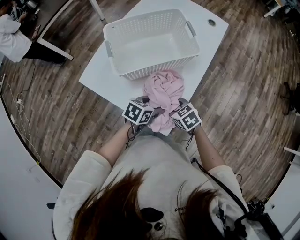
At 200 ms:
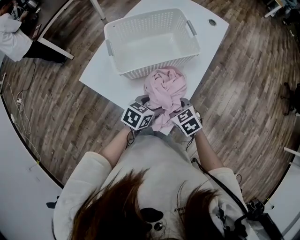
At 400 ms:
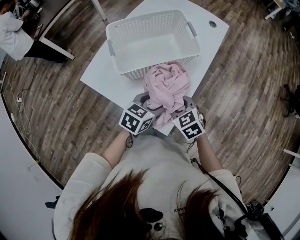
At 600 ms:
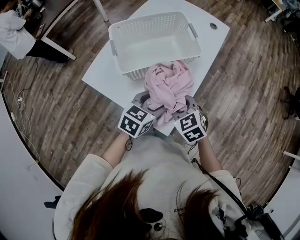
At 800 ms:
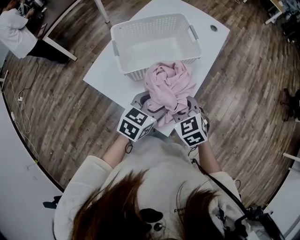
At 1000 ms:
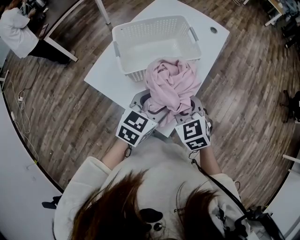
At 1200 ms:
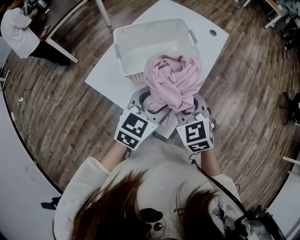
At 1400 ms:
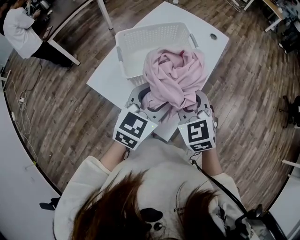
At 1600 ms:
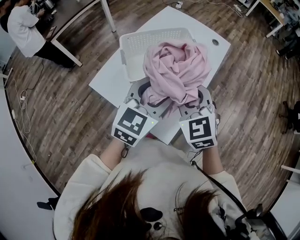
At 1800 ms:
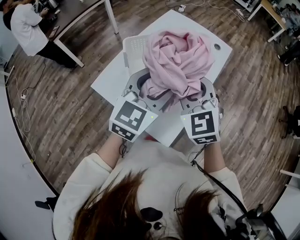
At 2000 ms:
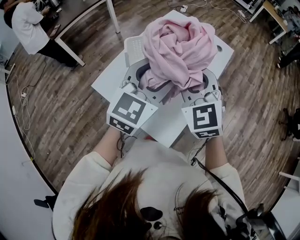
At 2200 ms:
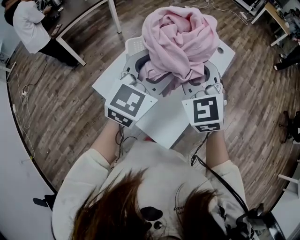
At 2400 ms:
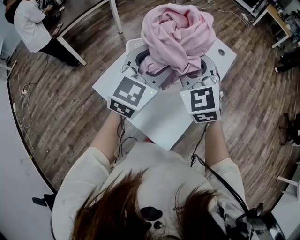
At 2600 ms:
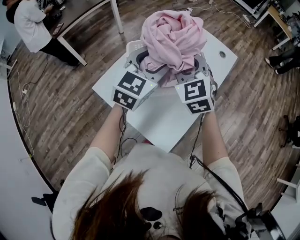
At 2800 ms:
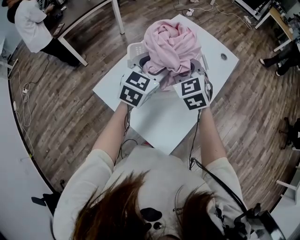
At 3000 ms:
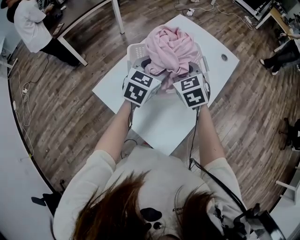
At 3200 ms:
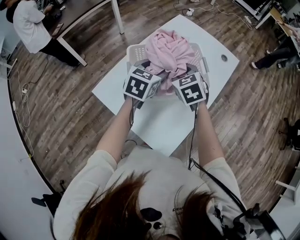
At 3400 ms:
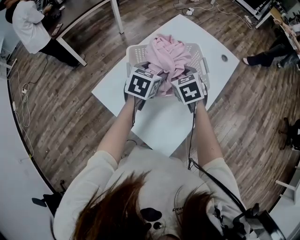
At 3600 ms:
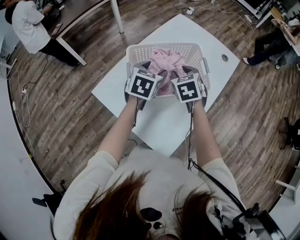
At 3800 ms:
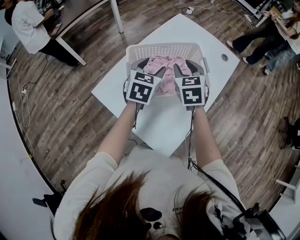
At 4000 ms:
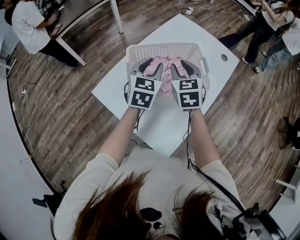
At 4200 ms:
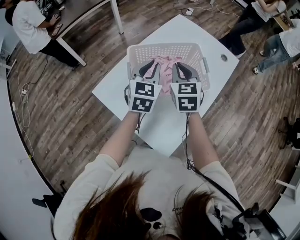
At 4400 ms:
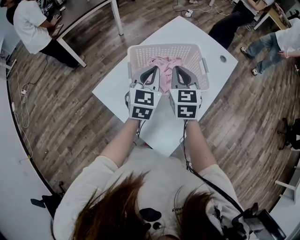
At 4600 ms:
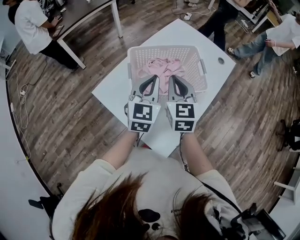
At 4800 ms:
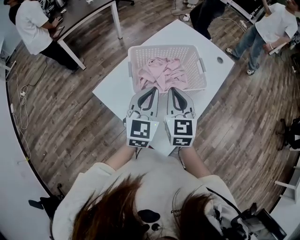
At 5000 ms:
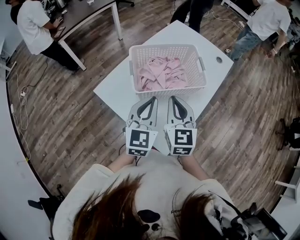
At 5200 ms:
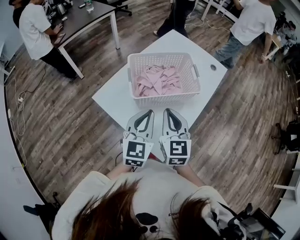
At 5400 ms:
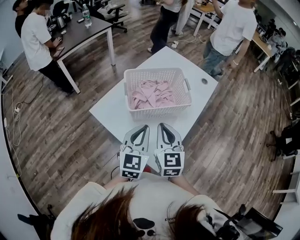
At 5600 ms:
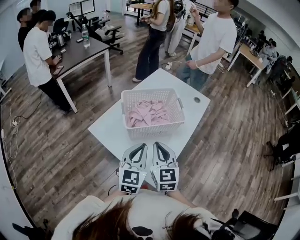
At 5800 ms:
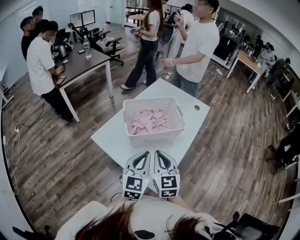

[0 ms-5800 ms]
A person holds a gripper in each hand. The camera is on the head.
0 ms to 1400 ms: The grippers both shift upward by some 25 cm. The right gripper turns by about 40 degrees. Meanwhile the left gripper swivels roughly 40 degrees.
1400 ms to 2800 ms: The right gripper shifts approximately 20 cm forward, while the left gripper shifts some 20 cm forward and to the left.
2800 ms to 4400 ms: The left gripper travels downward and back again, some 10 cm each way, and closes. Meanwhile the right gripper goes downward and returns, some 10 cm each way, changes its angle by some 20 degrees, and closes.
4400 ms to 5800 ms: The two grippers go about 20 cm backward.

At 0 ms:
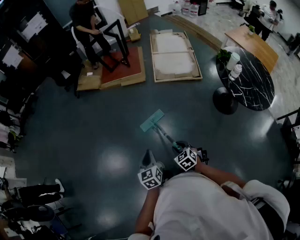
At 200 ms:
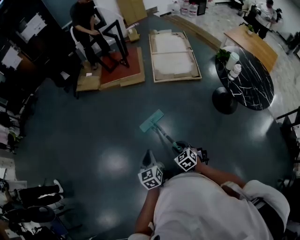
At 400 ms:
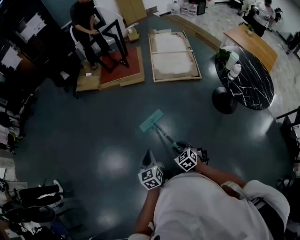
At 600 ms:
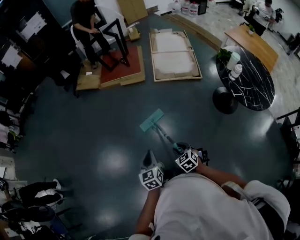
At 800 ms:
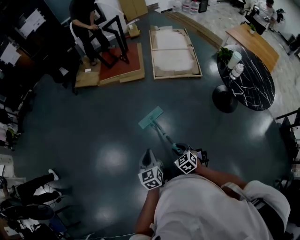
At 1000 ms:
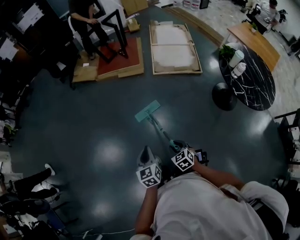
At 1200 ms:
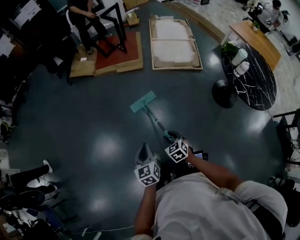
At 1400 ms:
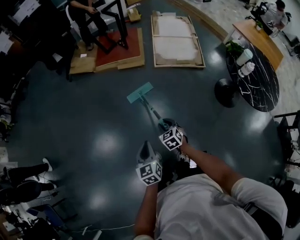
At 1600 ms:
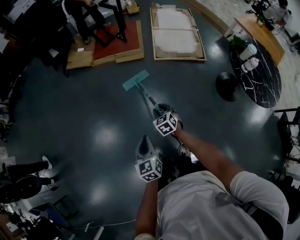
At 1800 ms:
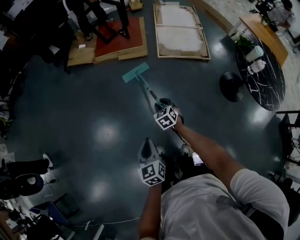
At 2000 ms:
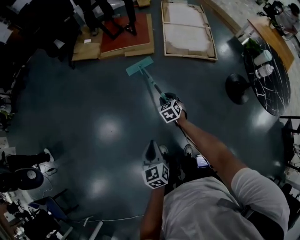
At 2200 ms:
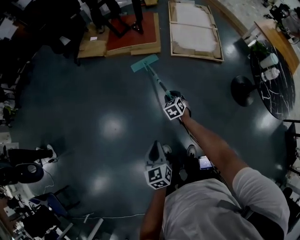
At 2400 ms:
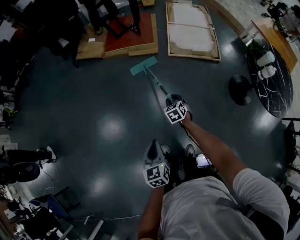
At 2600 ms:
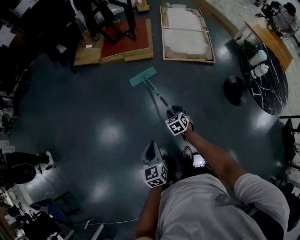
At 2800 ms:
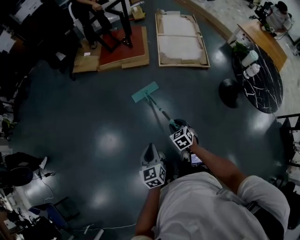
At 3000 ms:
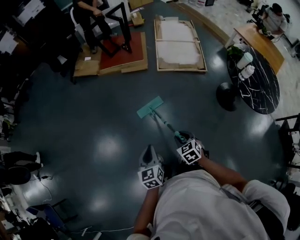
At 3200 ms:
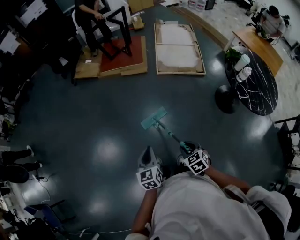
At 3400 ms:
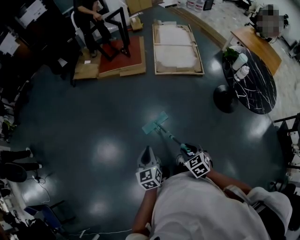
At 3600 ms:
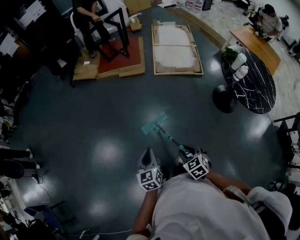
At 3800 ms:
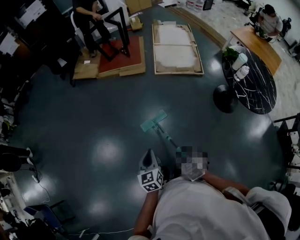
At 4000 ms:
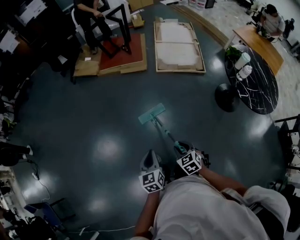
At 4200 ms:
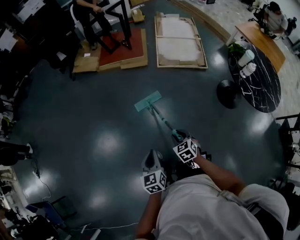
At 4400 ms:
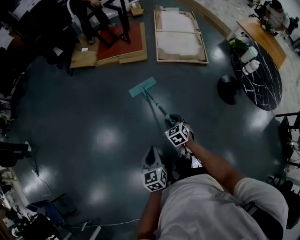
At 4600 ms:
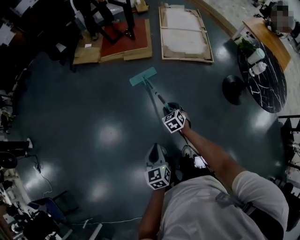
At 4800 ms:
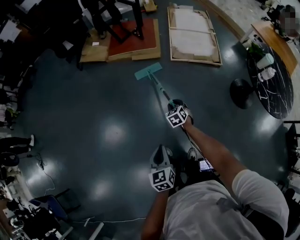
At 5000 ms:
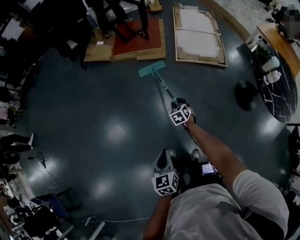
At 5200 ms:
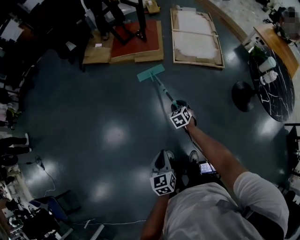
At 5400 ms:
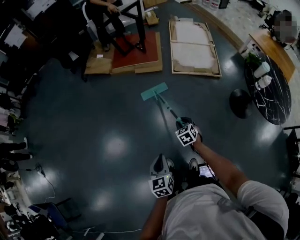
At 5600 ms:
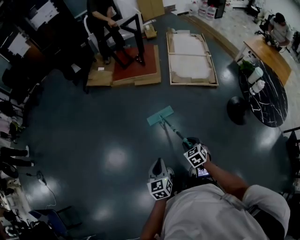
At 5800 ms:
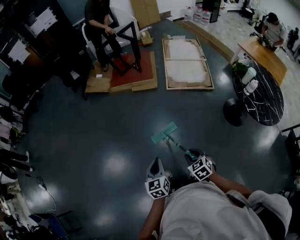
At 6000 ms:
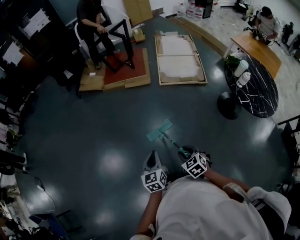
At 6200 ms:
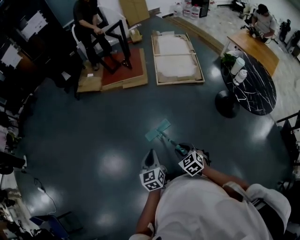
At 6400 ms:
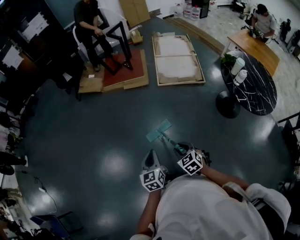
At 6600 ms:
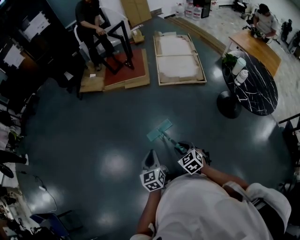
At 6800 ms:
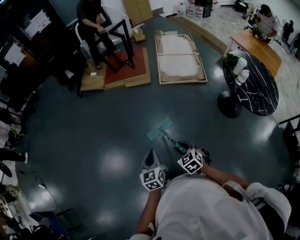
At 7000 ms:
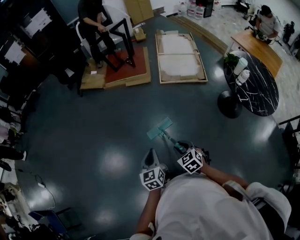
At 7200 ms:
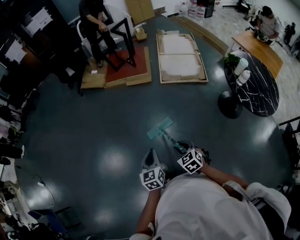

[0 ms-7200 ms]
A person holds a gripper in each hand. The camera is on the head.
0 ms to 1400 ms: The left gripper travels forward by roughly 5 cm; the right gripper moves forward, about 15 cm.
1400 ms to 2800 ms: The right gripper goes forward and returns, about 20 cm each way.
2800 ms to 4400 ms: The right gripper travels backward and back again, roughly 20 cm each way.
4400 ms to 5800 ms: The right gripper is displaced backward and upward by approximately 15 cm; the left gripper moves some 5 cm.
5800 ms to 7200 ms: There are only small adjustments of the grippers.

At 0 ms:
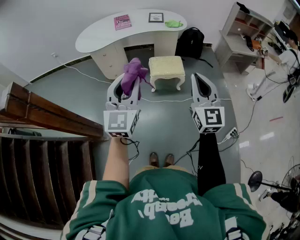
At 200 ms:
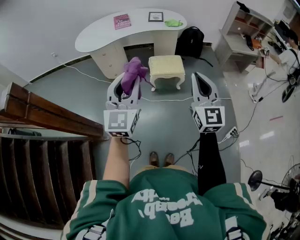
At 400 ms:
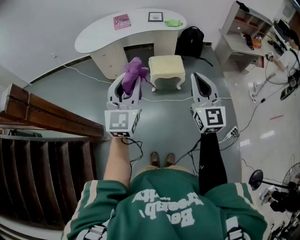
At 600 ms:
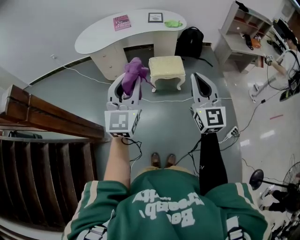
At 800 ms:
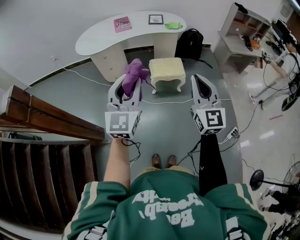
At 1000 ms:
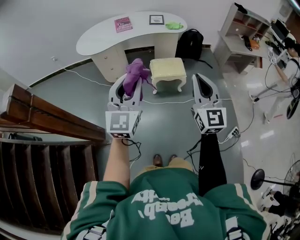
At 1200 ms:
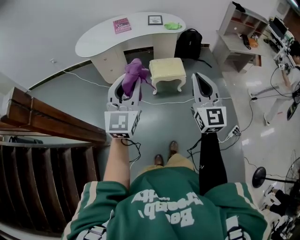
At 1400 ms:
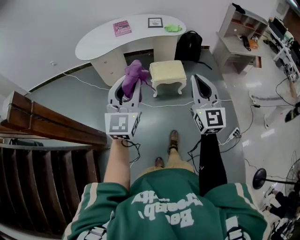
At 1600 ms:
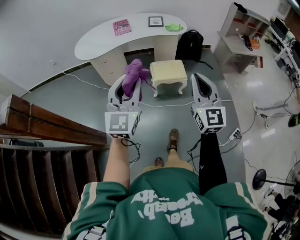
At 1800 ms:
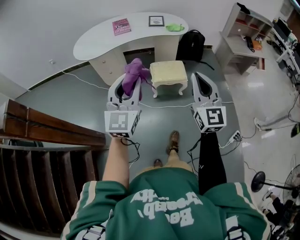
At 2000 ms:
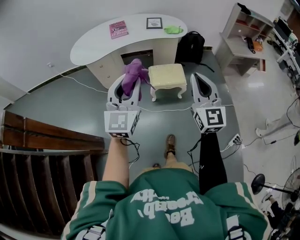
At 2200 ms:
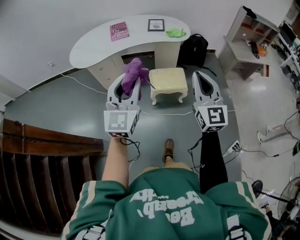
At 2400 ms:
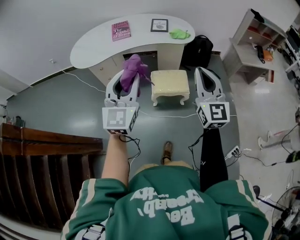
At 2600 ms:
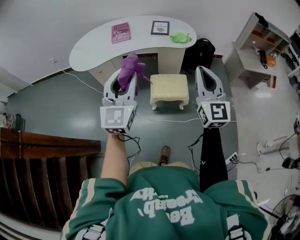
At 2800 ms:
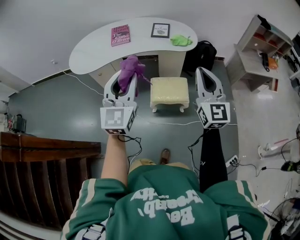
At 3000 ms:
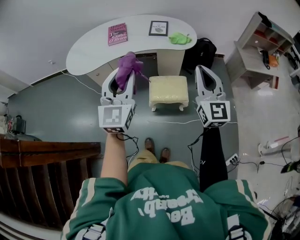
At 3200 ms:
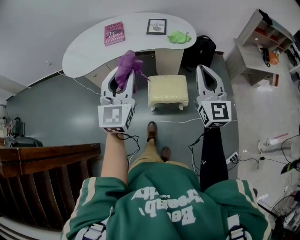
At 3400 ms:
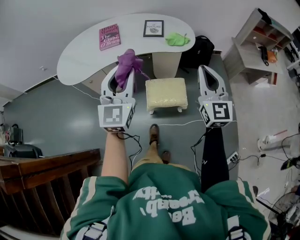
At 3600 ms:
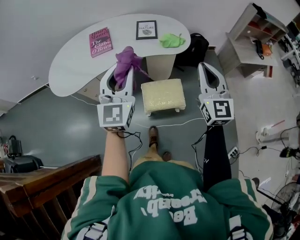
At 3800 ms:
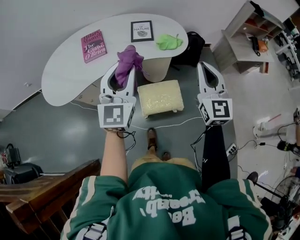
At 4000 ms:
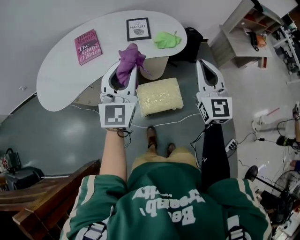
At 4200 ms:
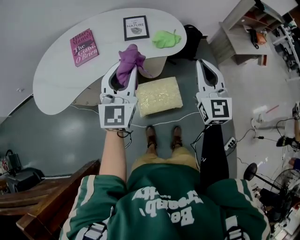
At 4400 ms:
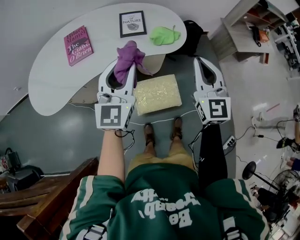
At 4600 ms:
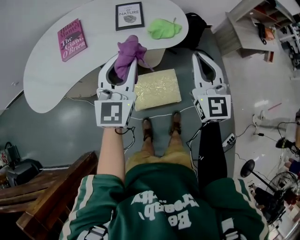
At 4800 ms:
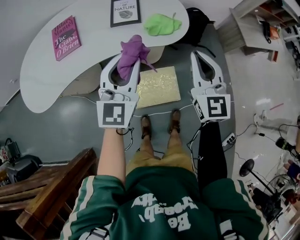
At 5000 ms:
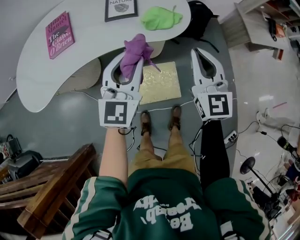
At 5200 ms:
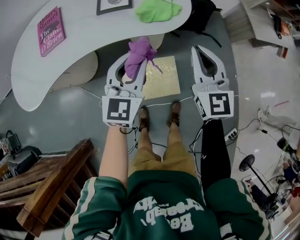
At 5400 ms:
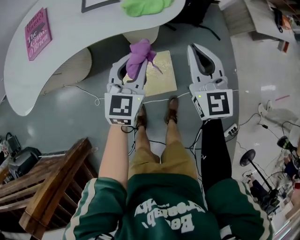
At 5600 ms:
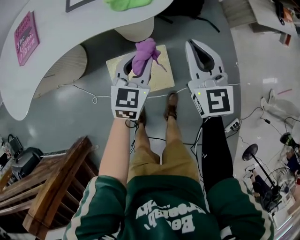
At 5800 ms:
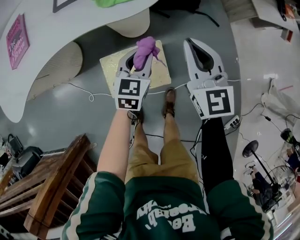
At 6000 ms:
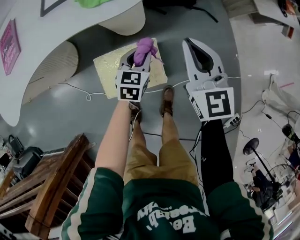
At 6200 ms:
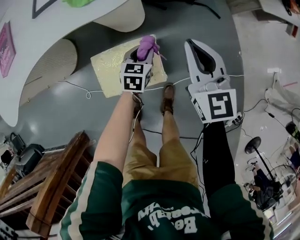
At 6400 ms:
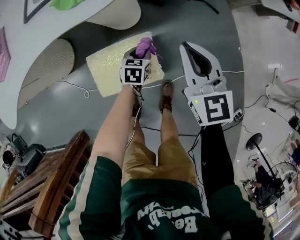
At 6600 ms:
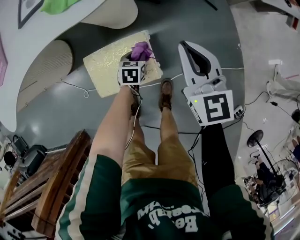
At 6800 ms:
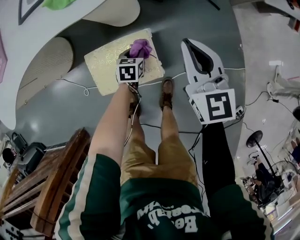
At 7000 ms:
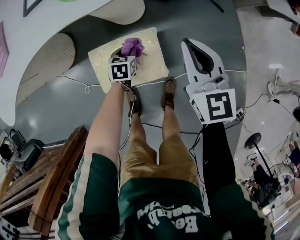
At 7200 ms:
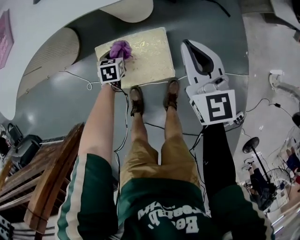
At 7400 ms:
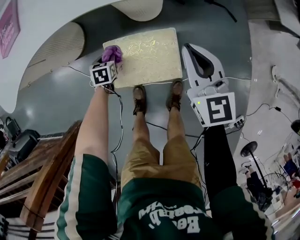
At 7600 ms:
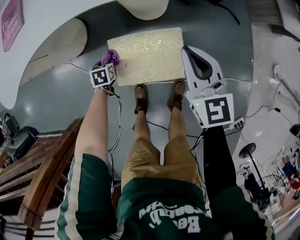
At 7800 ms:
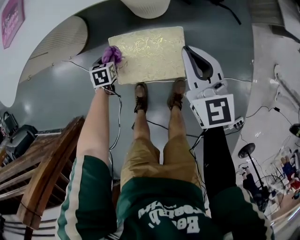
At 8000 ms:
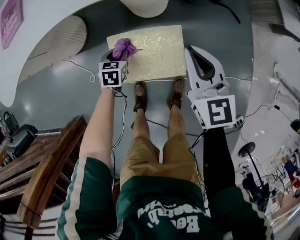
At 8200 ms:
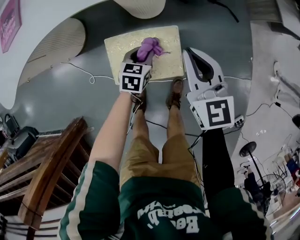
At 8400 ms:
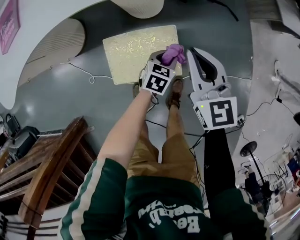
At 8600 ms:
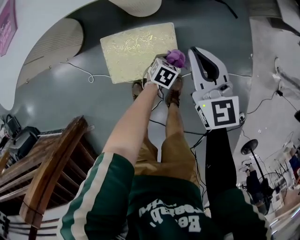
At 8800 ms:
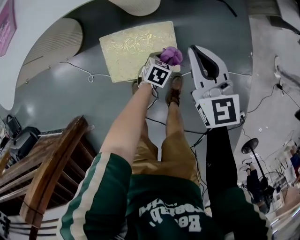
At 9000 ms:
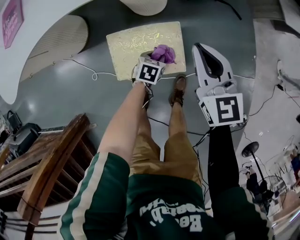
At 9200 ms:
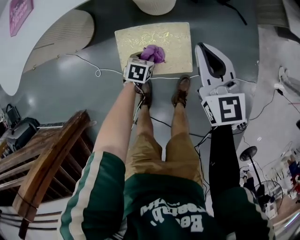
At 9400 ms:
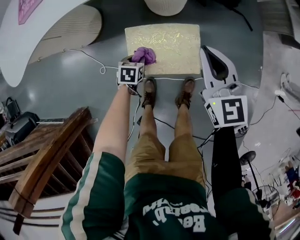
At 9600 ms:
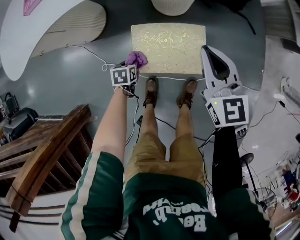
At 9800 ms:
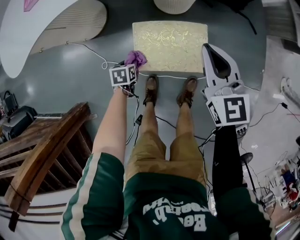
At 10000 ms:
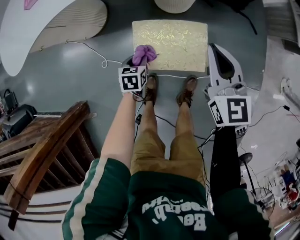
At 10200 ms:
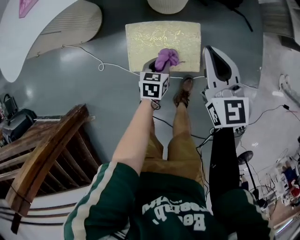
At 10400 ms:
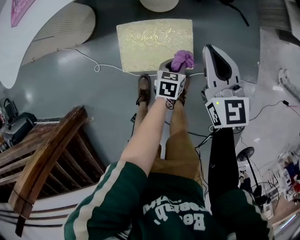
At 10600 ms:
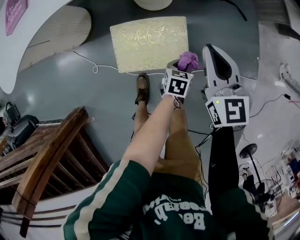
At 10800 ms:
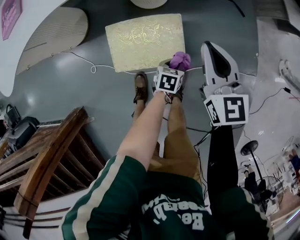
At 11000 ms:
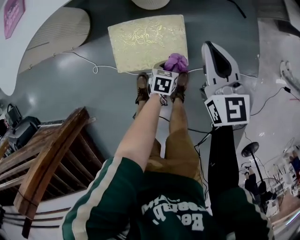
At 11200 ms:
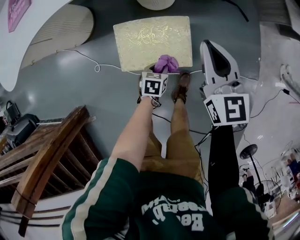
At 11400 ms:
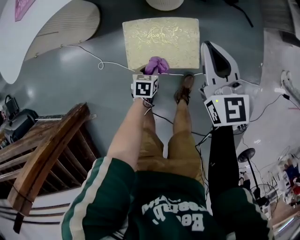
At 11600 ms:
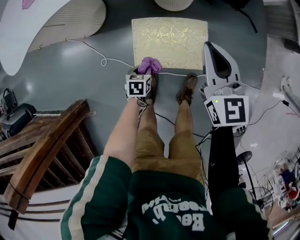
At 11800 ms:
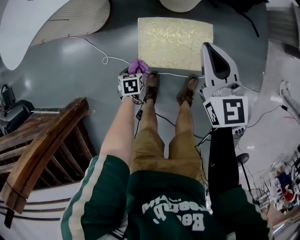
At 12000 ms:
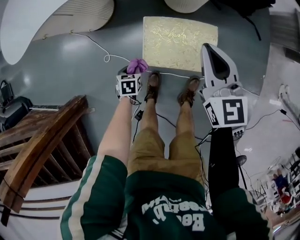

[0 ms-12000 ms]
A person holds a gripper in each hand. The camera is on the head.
0 ms to 1600 ms: The grippers move only a little.
1600 ms to 3000 ms: Both grippers move forward, roughly 30 cm.
3000 ms to 4400 ms: The grippers both shift forward by roughly 25 cm.
4400 ms to 6000 ms: The right gripper heads downward and to the right, covering roughly 30 cm; the left gripper heads downward and to the right, covering roughly 50 cm, and tilts its fingers roughly 40 degrees downward.
6000 ms to 7600 ms: The left gripper moves to the left and downward, approximately 35 cm, and changes its angle by roughly 40 degrees; the right gripper moves to the left and downward, about 10 cm.
7600 ms to 9000 ms: The left gripper travels upward and back again, about 10 cm each way, and turns by roughly 30 degrees.
9000 ms to 10400 ms: The left gripper goes to the left and returns, roughly 25 cm each way. Meanwhile the right gripper reaches roughly 10 cm to the left, then returns.
10400 ms to 12000 ms: The left gripper shifts by about 35 cm, and turns by approximately 30 degrees, while the right gripper shifts by about 10 cm.
